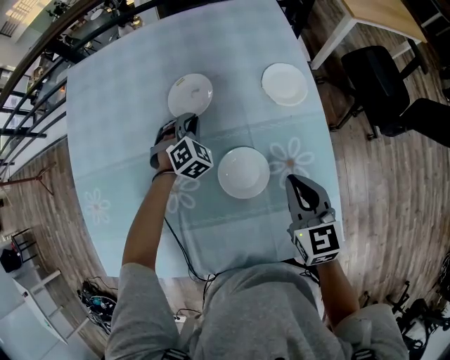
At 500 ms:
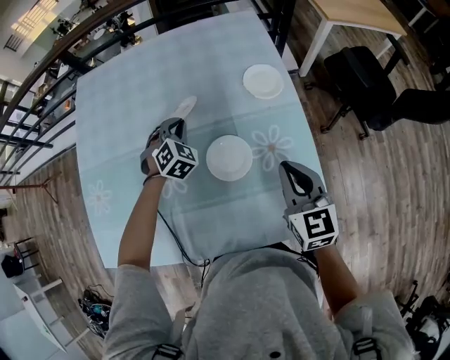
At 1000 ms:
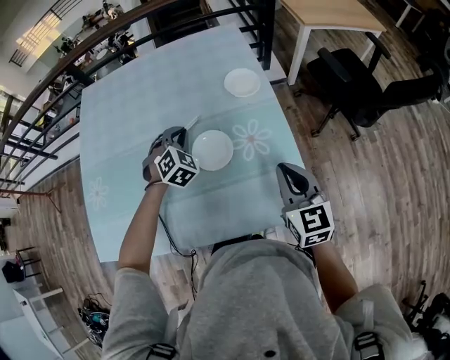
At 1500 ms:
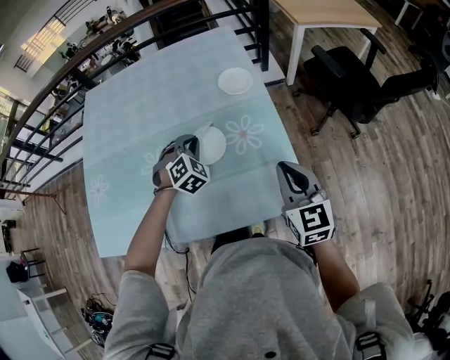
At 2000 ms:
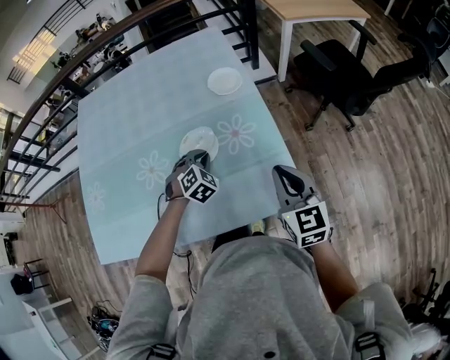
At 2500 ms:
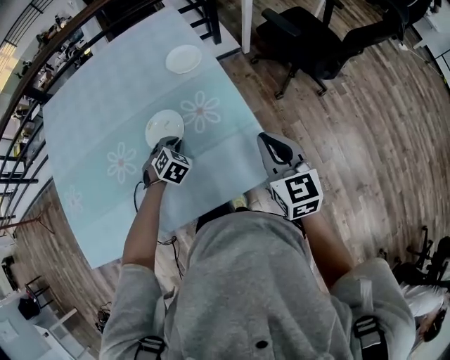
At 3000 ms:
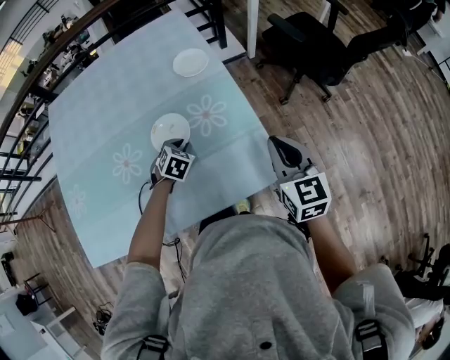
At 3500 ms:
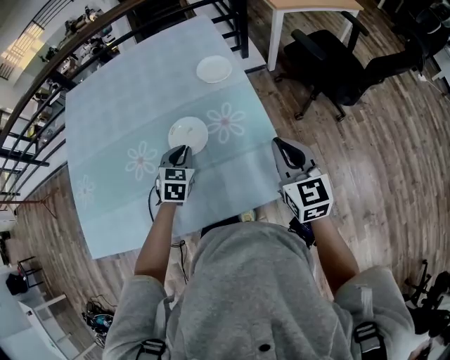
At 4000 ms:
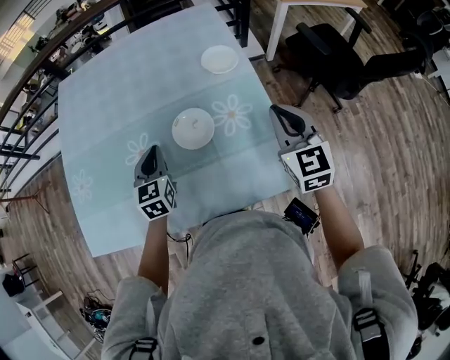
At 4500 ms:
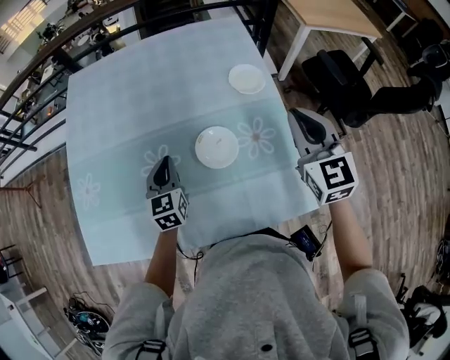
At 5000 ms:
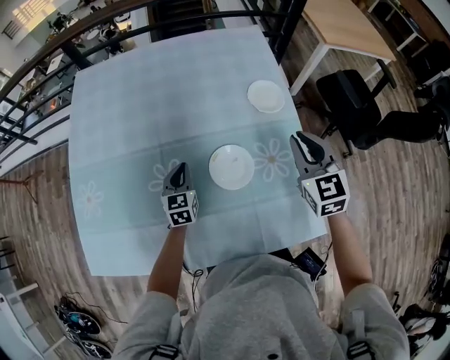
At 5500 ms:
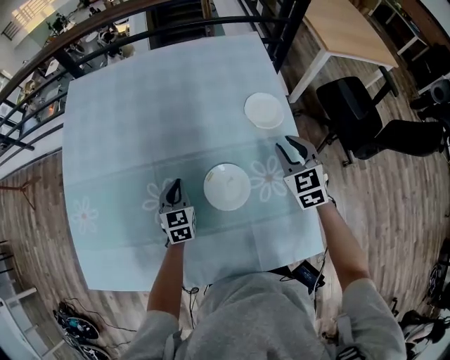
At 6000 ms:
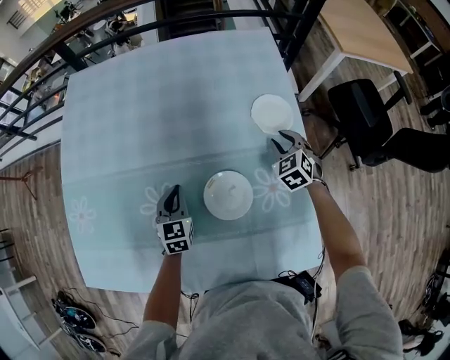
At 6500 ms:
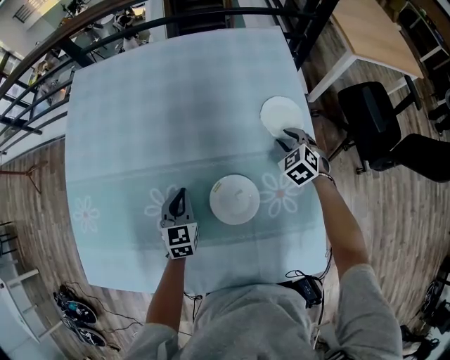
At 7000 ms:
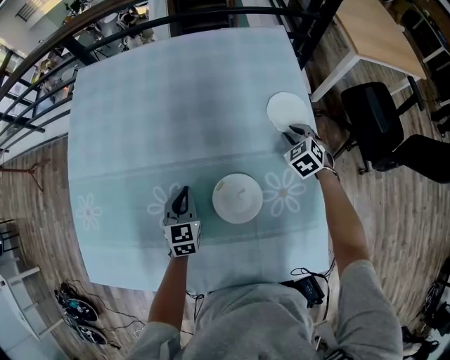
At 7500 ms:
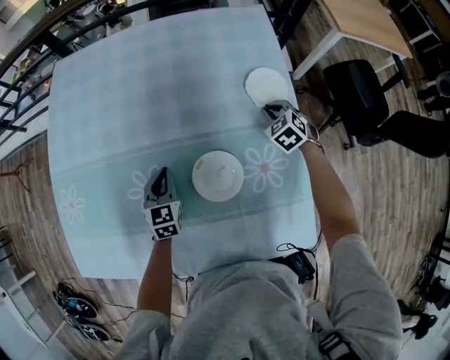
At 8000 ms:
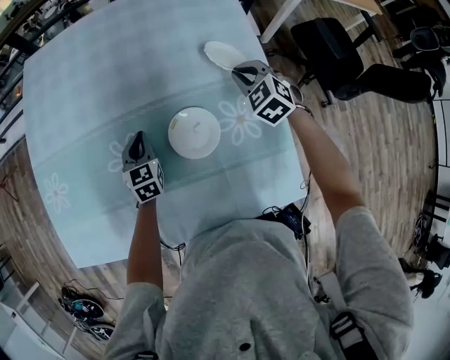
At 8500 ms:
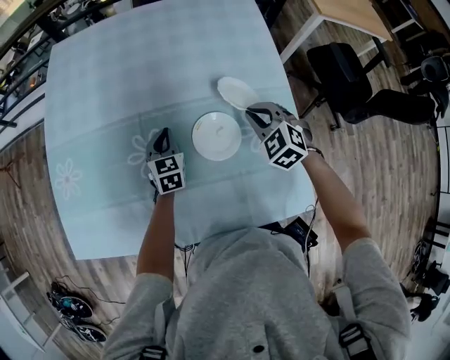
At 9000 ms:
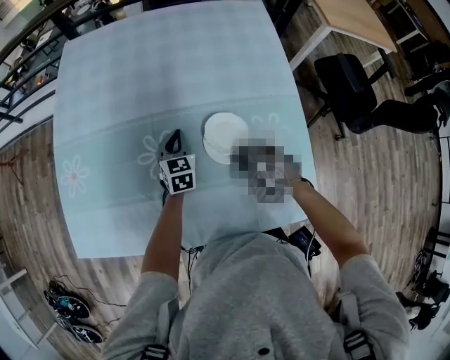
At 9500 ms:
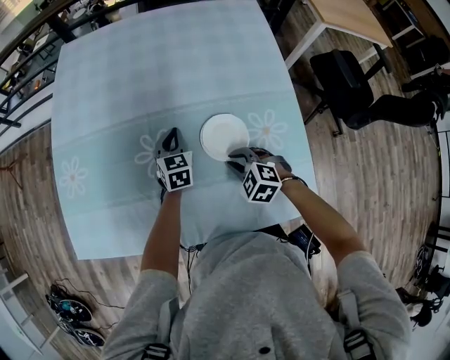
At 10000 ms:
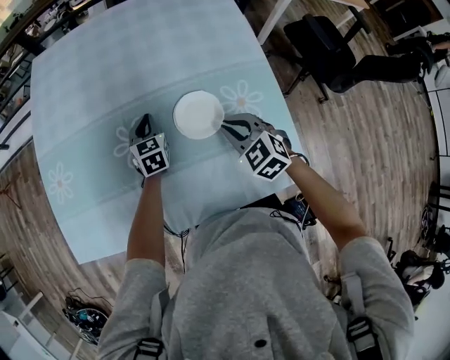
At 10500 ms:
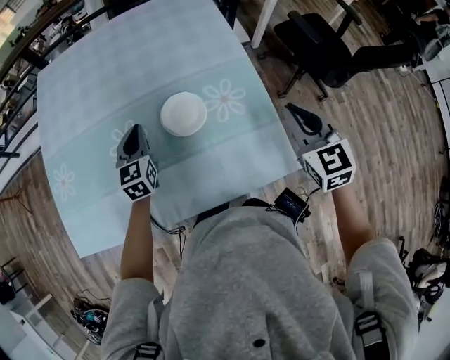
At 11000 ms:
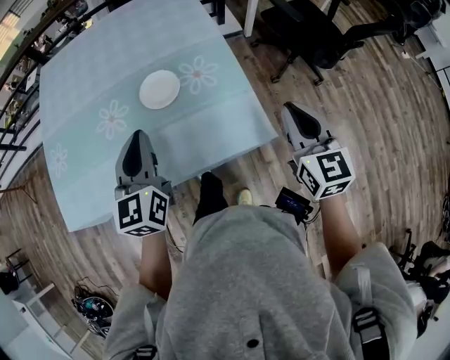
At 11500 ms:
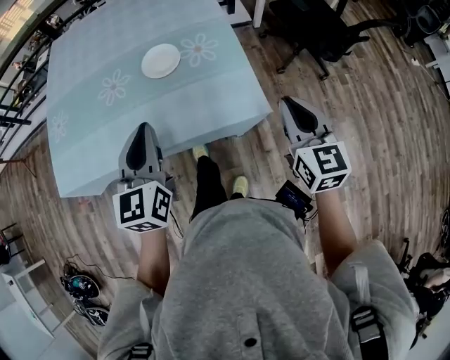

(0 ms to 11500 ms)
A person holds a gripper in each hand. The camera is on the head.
0 ms - 2000 ms: The grippers both shift backward and to the right by about 25 cm.
2000 ms - 4000 ms: The left gripper is displaced to the left and upward by some 15 cm, and rolls counterclockwise, seen from behind, by some 50 degrees, while the right gripper is displaced forward by about 10 cm.
4000 ms - 6000 ms: The left gripper moves downward and forward, roughly 15 cm. The right gripper moves forward and downward, roughly 30 cm, swivels some 40 degrees, and opens up.
6000 ms - 7500 ms: The grippers make only small movements.
7500 ms - 9500 ms: The right gripper goes some 30 cm backward and to the left, and turns by roughly 20 degrees.
9500 ms - 11500 ms: The left gripper ends up about 50 cm from where it was, and swivels approximately 20 degrees; the right gripper ends up some 40 cm from where it was, and tips its fingers upward by about 40 degrees.

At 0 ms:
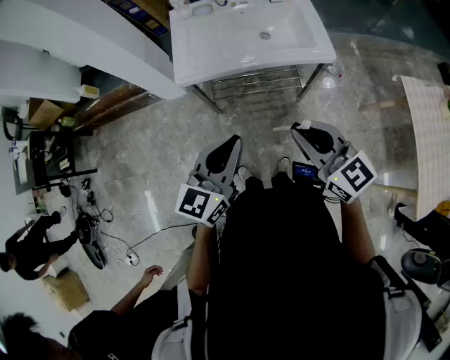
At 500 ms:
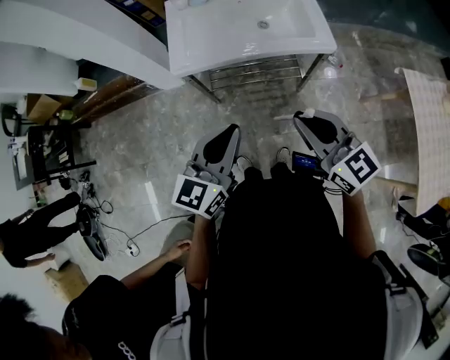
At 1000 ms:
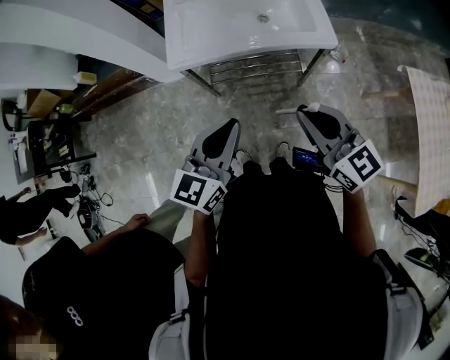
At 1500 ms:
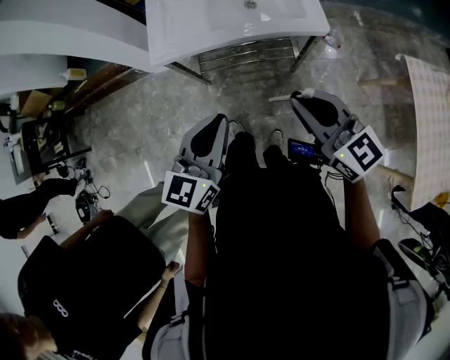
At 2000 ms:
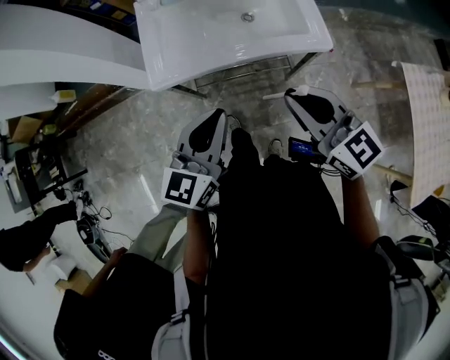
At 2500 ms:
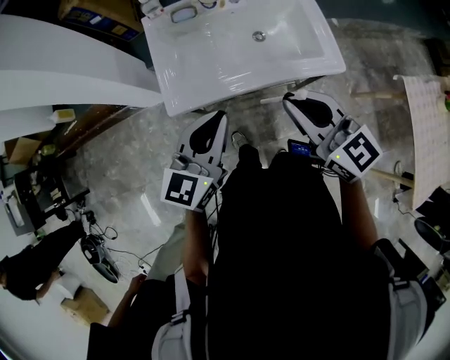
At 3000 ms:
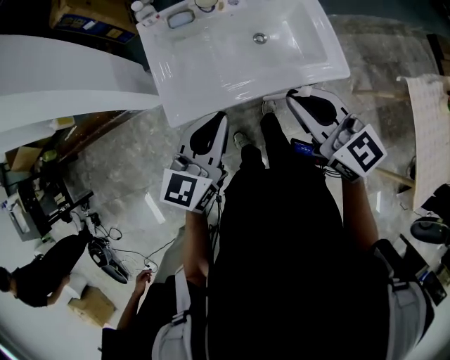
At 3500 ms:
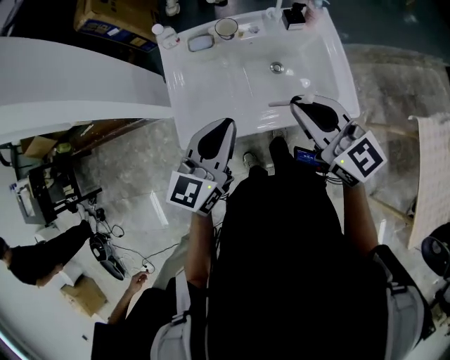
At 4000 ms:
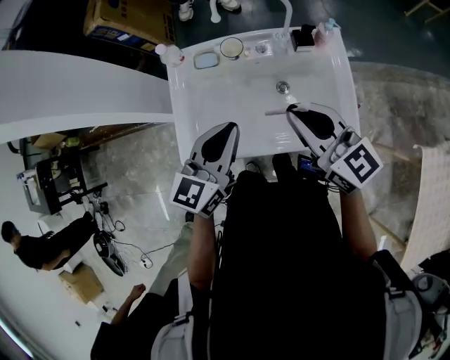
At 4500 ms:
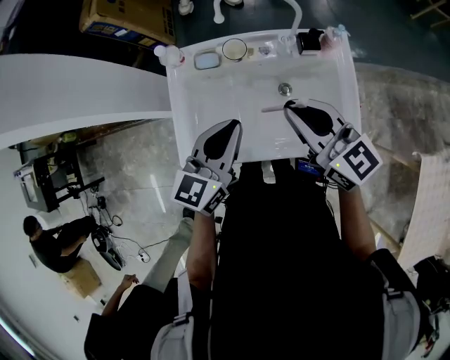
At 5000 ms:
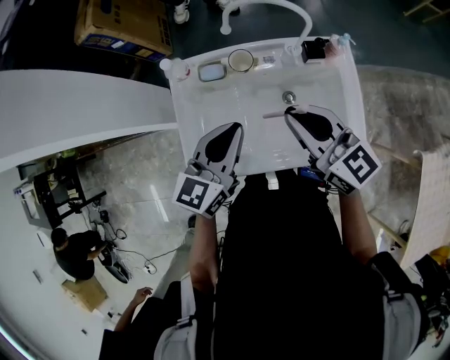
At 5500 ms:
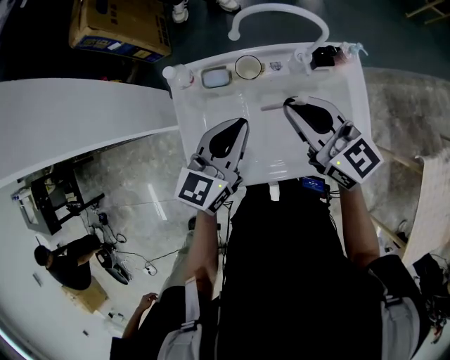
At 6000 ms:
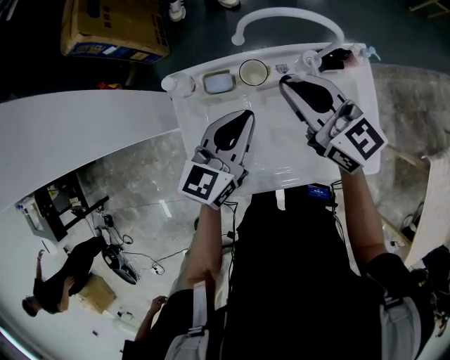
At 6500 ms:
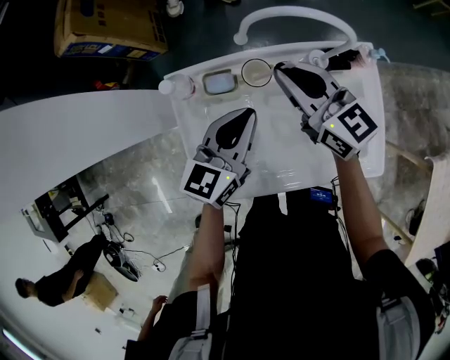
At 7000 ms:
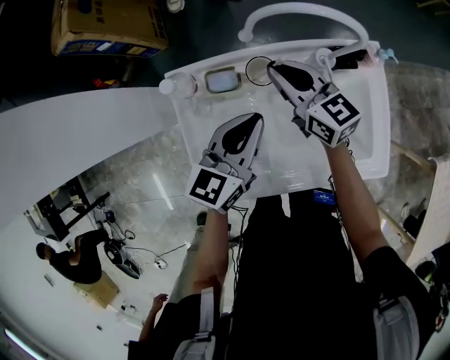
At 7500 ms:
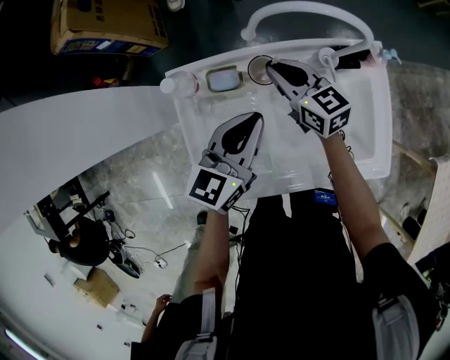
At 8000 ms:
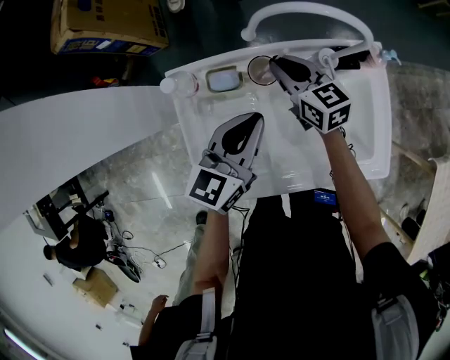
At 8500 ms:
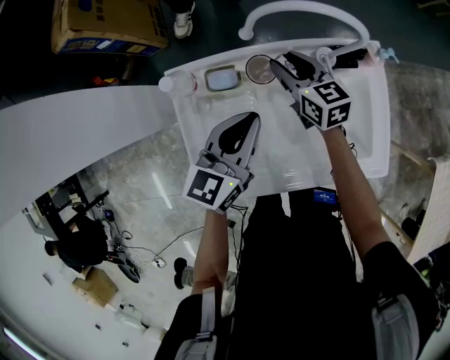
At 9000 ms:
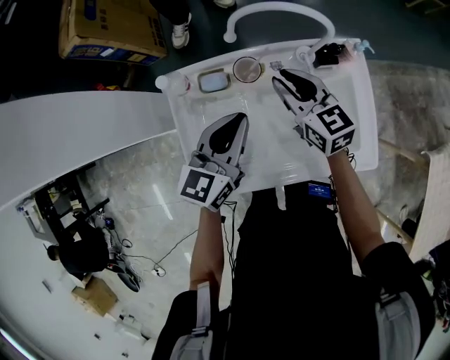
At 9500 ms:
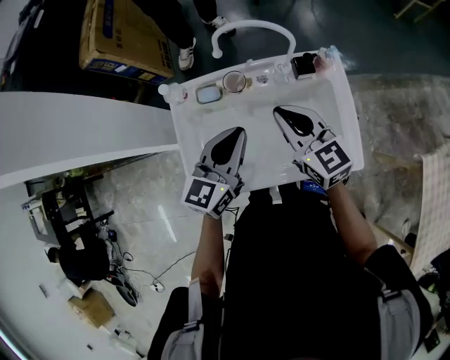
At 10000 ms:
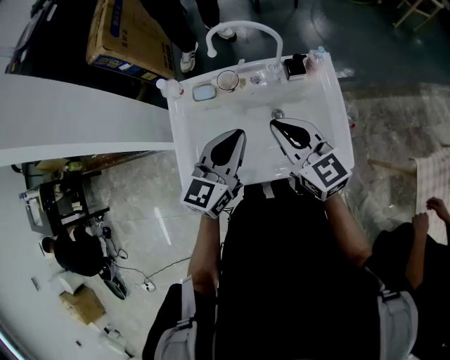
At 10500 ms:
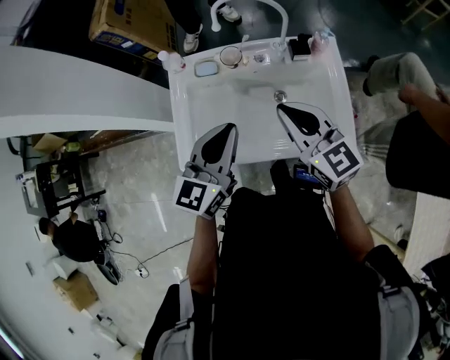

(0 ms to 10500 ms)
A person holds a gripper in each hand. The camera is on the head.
0 ms - 2000 ms: The grippers both shift forward by approximately 15 cm.
2000 ms - 4000 ms: The grippers both shift forward by some 30 cm.
4000 ms - 6500 ms: The right gripper goes some 25 cm forward, while the left gripper travels forward and downward by roughly 20 cm.
6500 ms - 8500 ms: The right gripper goes some 15 cm downward, and opens its fingers.
8500 ms - 10500 ms: The left gripper heads backward and upward, covering about 20 cm. The right gripper is displaced backward and upward by some 35 cm, changes its angle by some 20 degrees, and closes its fingers.

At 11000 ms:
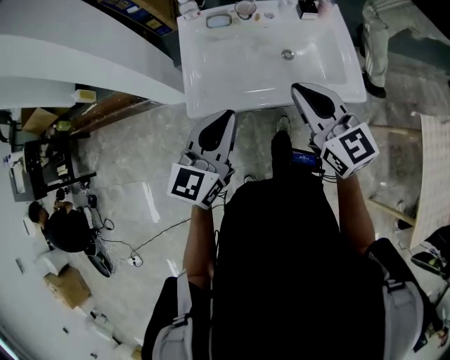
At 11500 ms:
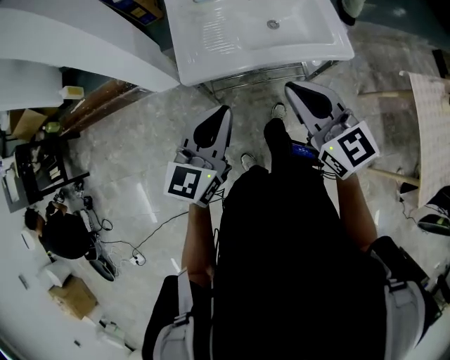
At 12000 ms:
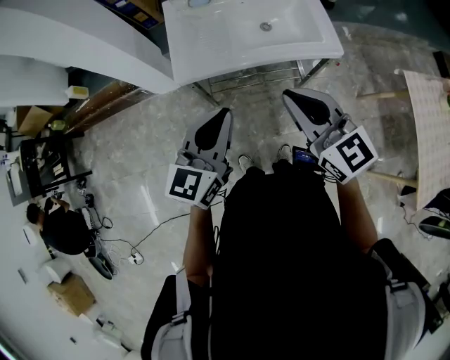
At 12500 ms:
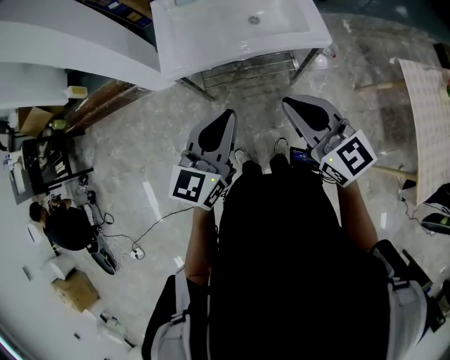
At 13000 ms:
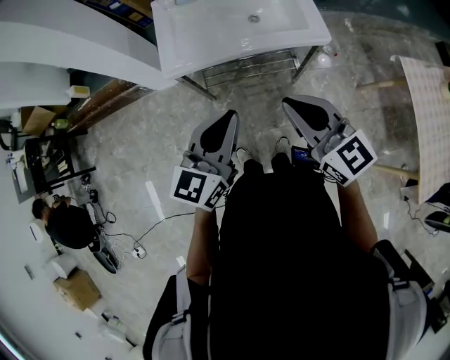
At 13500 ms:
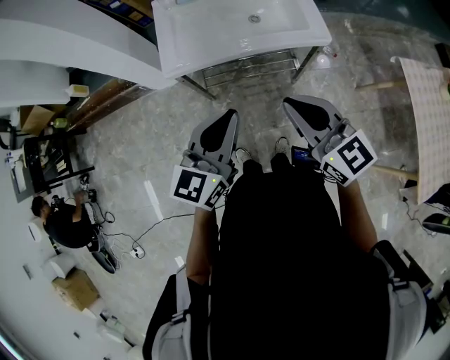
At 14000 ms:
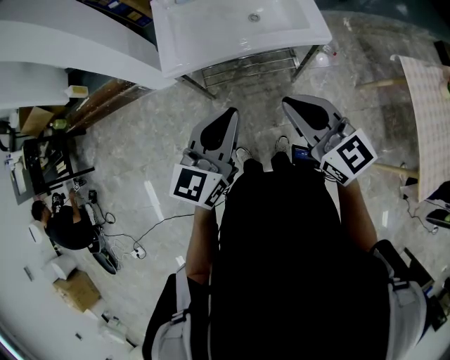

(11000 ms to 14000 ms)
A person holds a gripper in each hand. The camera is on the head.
11000 ms - 12500 ms: The grippers both shift backward by roughly 20 cm.
12500 ms - 14000 ms: The grippers stay close to where they were, moving slightly.

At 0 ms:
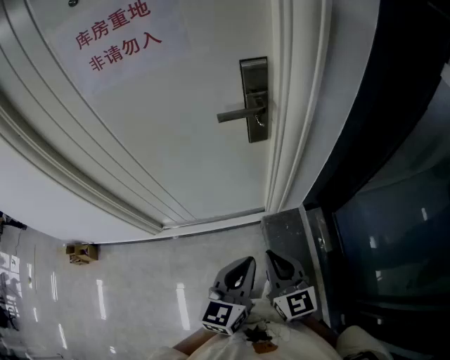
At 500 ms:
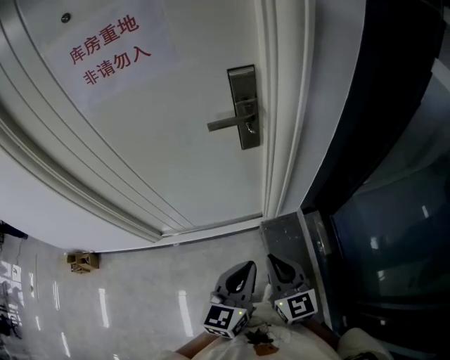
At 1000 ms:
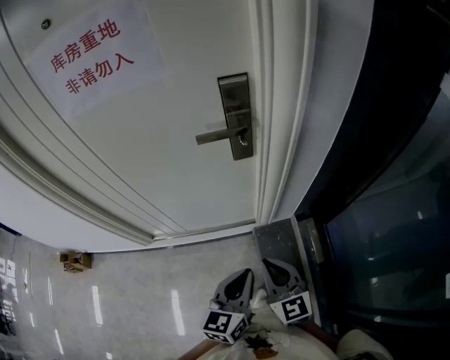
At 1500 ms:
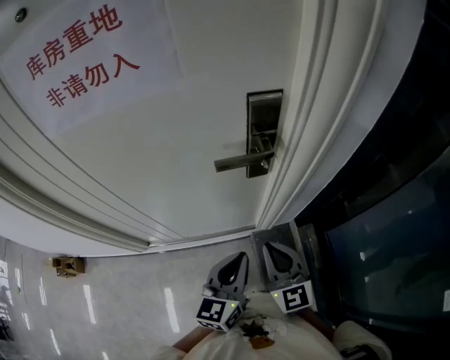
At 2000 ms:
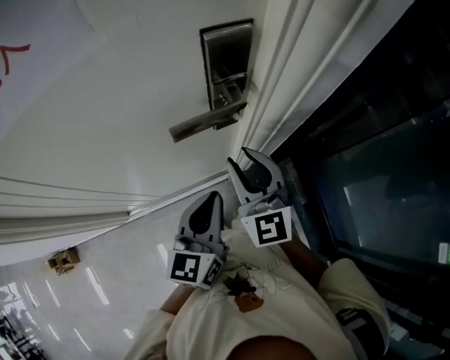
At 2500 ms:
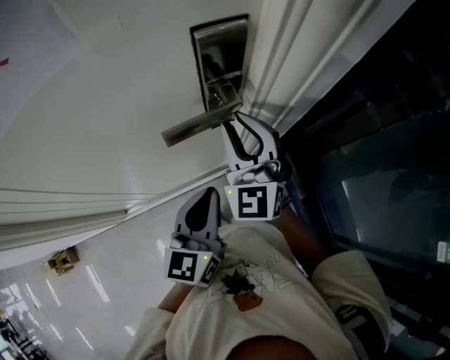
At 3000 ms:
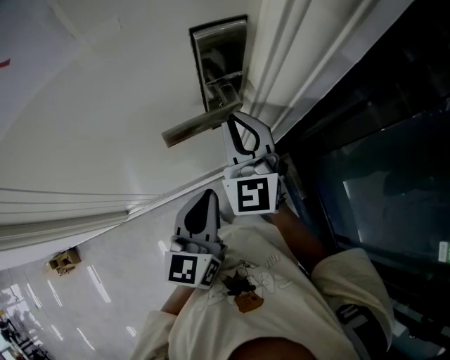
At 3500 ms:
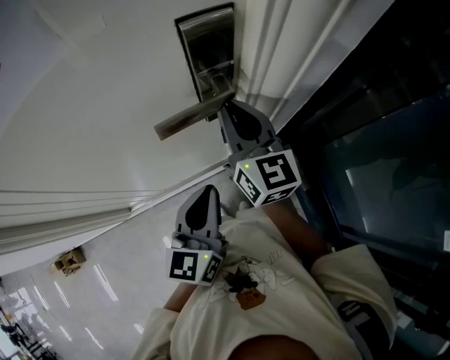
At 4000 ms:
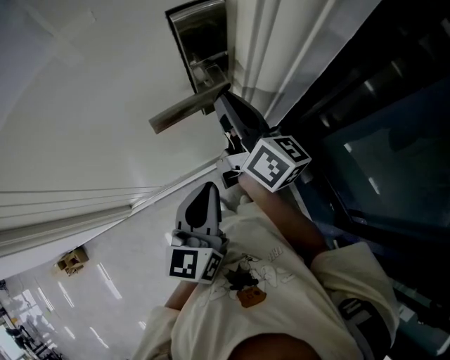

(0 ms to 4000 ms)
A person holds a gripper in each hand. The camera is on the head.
0 ms - 2000 ms: Both grippers move forward, approximately 25 cm. The right gripper swivels some 20 degrees, and opens up.
2000 ms - 4000 ms: The right gripper shifts roughly 10 cm forward, twists roughly 60 degrees clockwise, seen from behind, and closes up.
